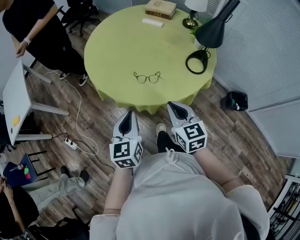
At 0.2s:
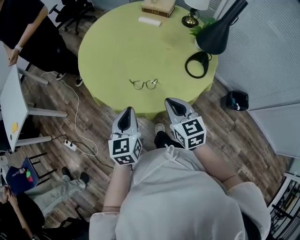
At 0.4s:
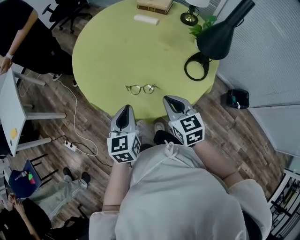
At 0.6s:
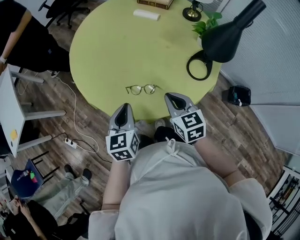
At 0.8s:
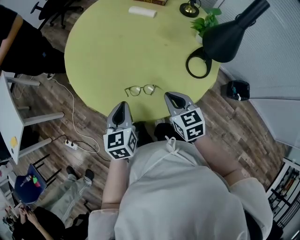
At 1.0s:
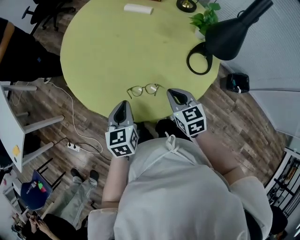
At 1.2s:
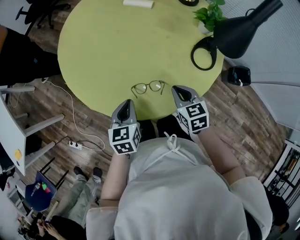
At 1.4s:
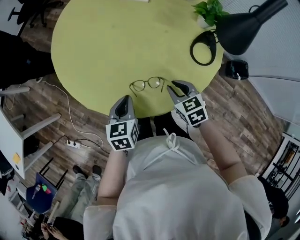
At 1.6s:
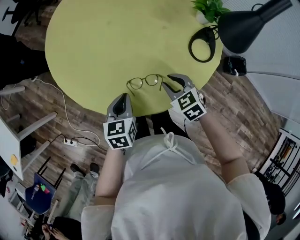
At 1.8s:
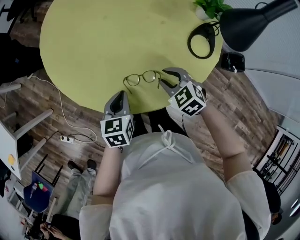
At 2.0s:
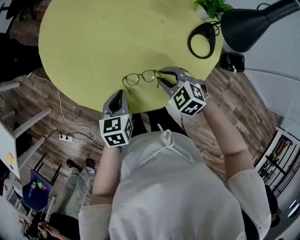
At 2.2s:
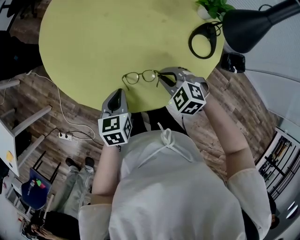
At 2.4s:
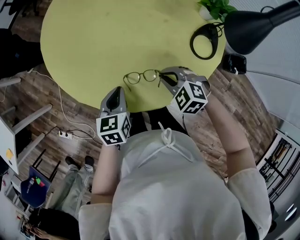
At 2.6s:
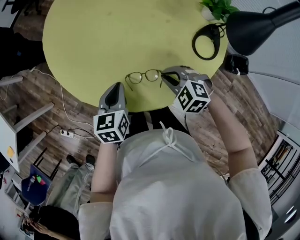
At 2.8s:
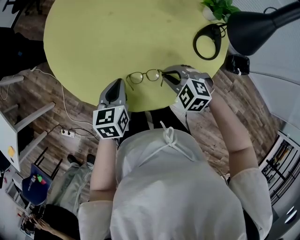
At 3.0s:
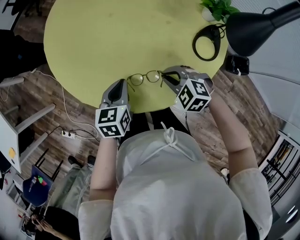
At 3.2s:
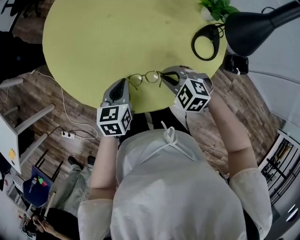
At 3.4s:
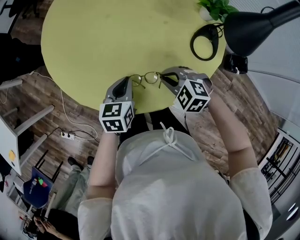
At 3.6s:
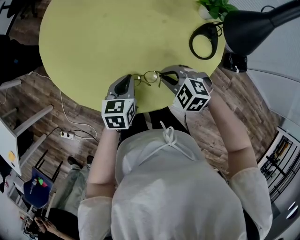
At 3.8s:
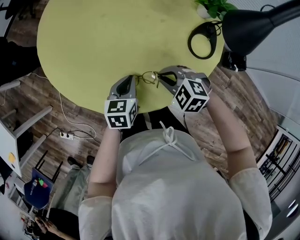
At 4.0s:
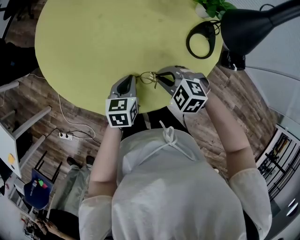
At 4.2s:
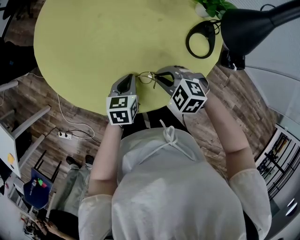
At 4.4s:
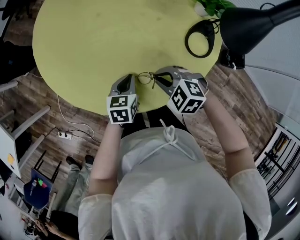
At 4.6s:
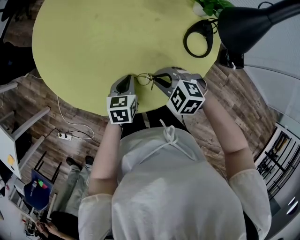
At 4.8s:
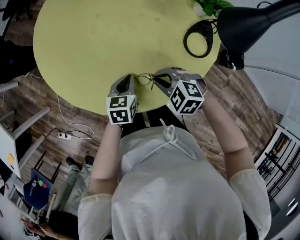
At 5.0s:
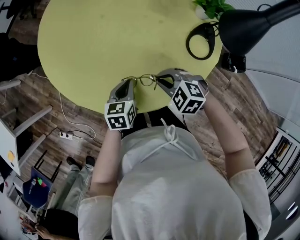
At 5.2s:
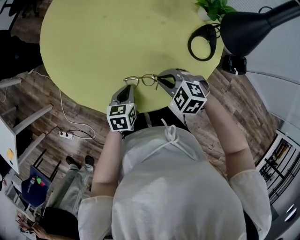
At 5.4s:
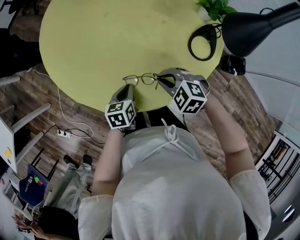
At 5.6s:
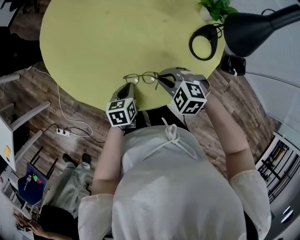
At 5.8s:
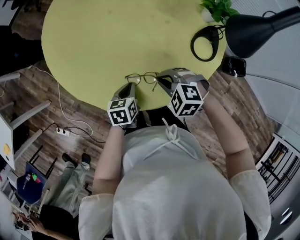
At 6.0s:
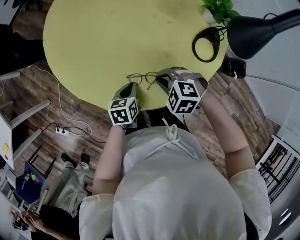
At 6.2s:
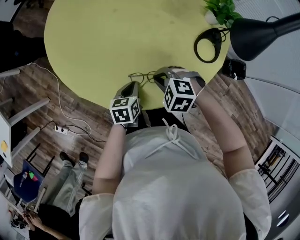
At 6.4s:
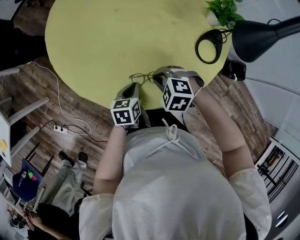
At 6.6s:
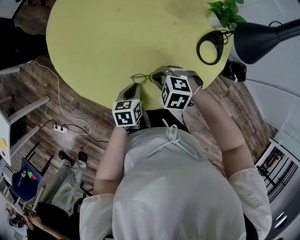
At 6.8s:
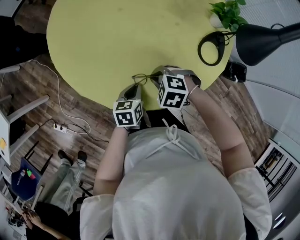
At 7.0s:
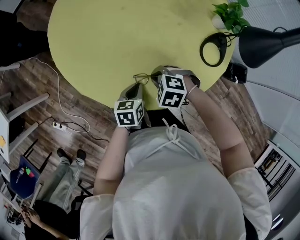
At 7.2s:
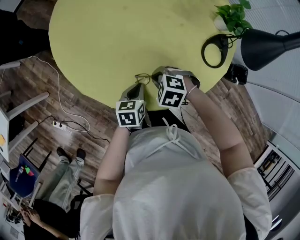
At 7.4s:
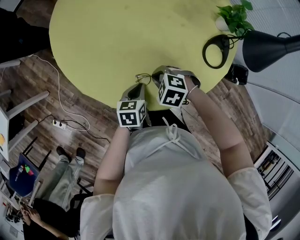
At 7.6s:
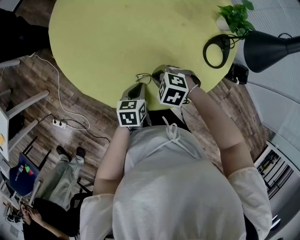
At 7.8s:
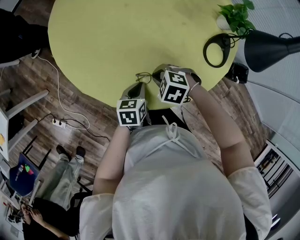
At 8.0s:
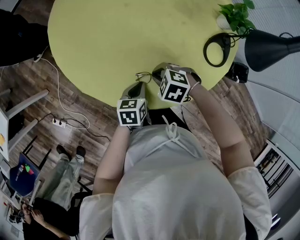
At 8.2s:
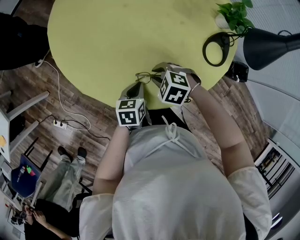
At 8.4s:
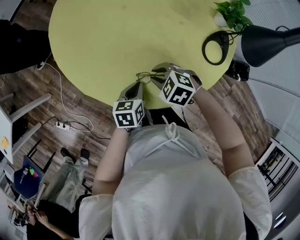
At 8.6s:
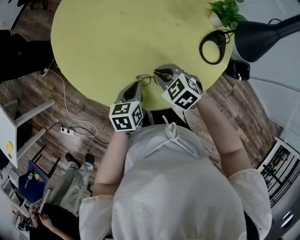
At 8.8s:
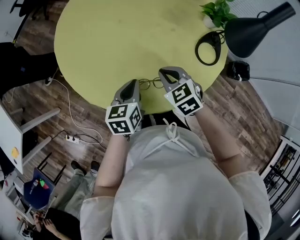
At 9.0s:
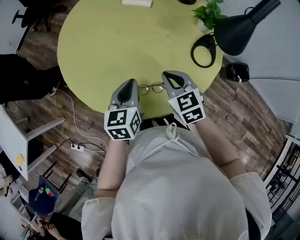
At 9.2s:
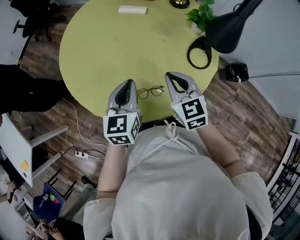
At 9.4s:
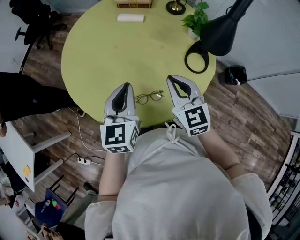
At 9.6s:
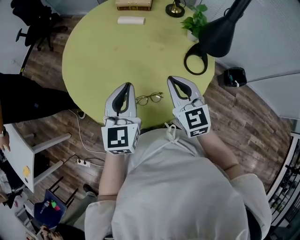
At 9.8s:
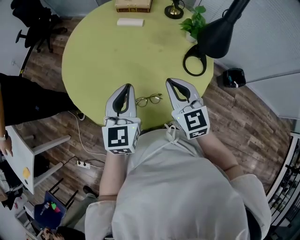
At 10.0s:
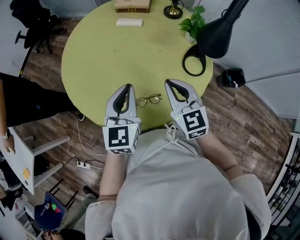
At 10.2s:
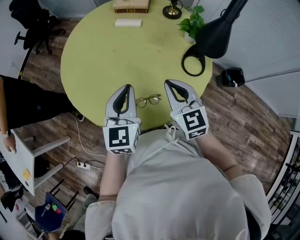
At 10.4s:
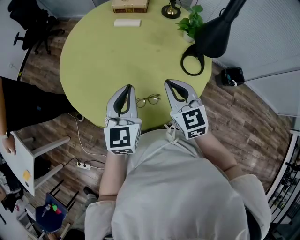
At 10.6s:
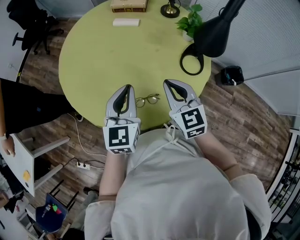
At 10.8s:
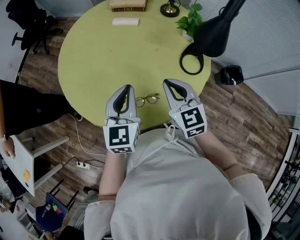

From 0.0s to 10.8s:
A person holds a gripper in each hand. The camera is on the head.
From 0.0s to 1.6s: The grippers both shift forward and downward by some 30 cm. The left gripper swivels some 30 degrees. The right gripper swivels some 30 degrees, and opens.
From 1.6s to 3.0s: The right gripper turns by approximately 30 degrees, and closes its fingers.
From 3.0s to 4.6s: The left gripper goes some 10 cm downward and to the right.
From 4.6s to 6.2s: The left gripper shifts by approximately 5 cm.
From 6.2s to 7.8s: The right gripper shifts by approximately 5 cm.
From 7.8s to 9.2s: The grippers both shift upward by roughly 20 cm. The left gripper swivels approximately 30 degrees. Meanwhile the right gripper angles its fingers upward, by about 40 degrees.
From 9.2s to 10.8s: The left gripper is displaced upward by roughly 5 cm.

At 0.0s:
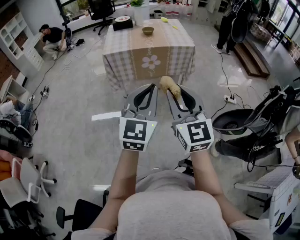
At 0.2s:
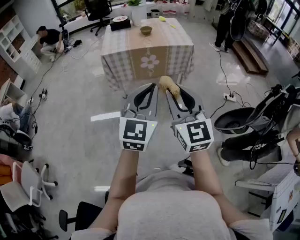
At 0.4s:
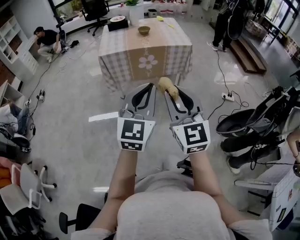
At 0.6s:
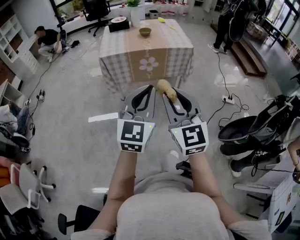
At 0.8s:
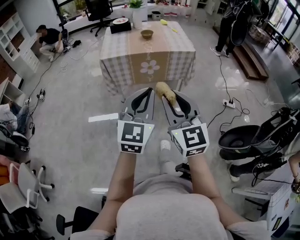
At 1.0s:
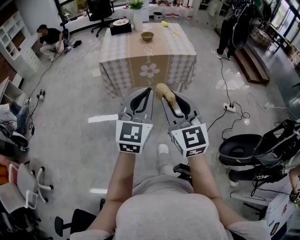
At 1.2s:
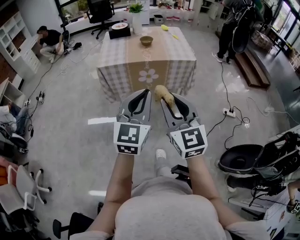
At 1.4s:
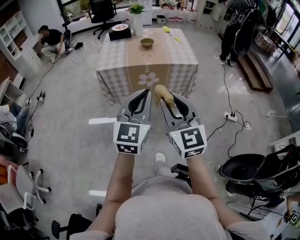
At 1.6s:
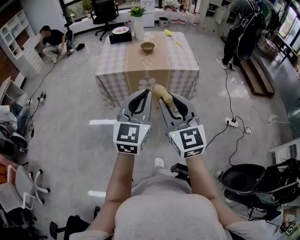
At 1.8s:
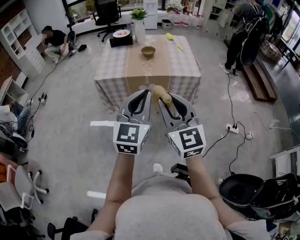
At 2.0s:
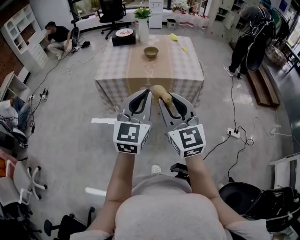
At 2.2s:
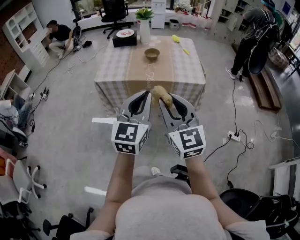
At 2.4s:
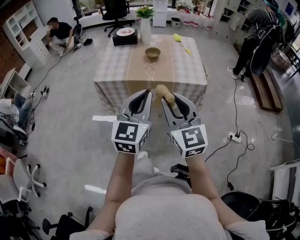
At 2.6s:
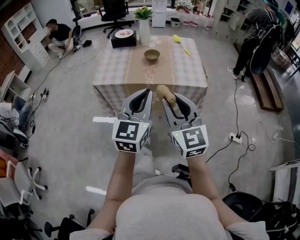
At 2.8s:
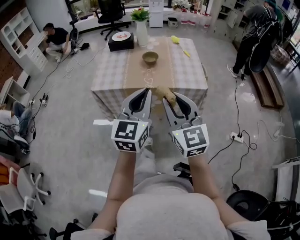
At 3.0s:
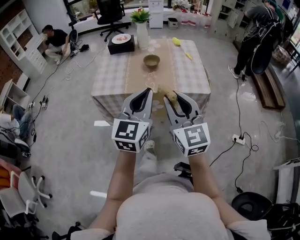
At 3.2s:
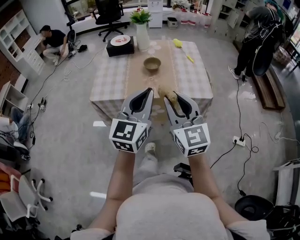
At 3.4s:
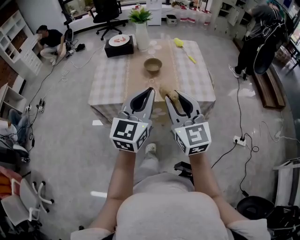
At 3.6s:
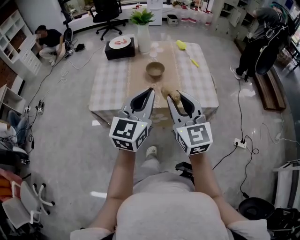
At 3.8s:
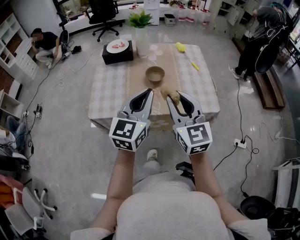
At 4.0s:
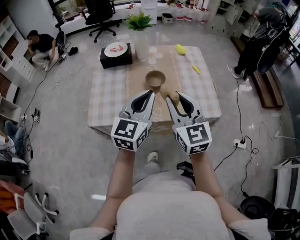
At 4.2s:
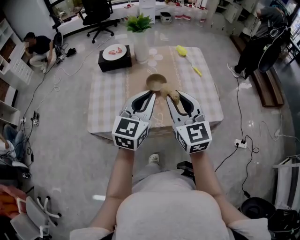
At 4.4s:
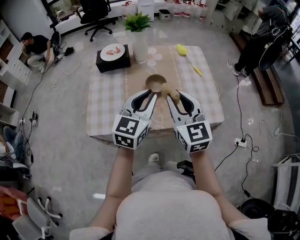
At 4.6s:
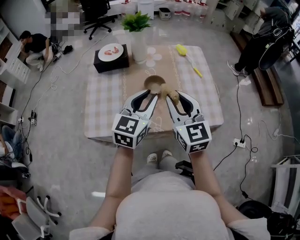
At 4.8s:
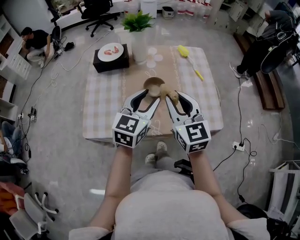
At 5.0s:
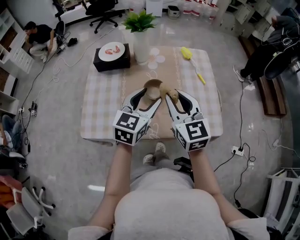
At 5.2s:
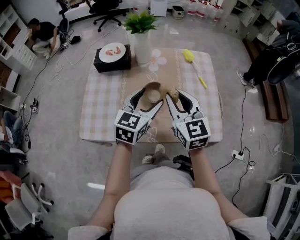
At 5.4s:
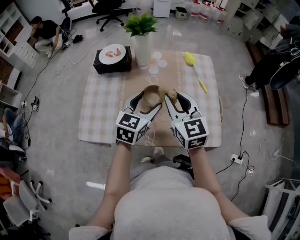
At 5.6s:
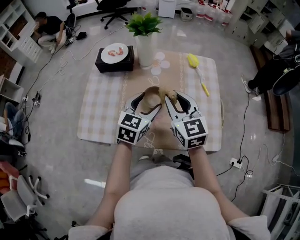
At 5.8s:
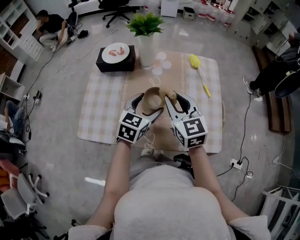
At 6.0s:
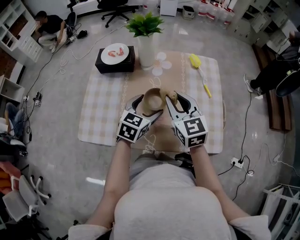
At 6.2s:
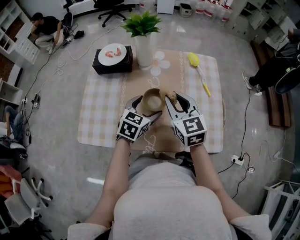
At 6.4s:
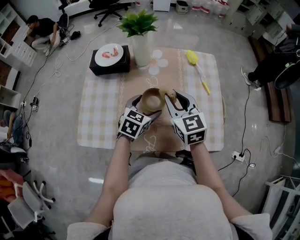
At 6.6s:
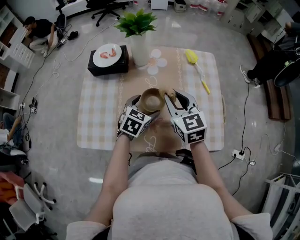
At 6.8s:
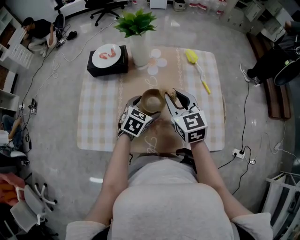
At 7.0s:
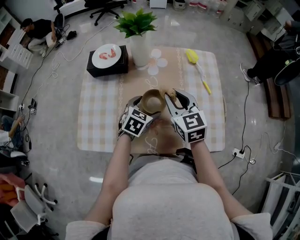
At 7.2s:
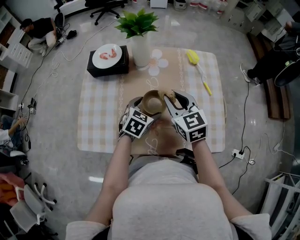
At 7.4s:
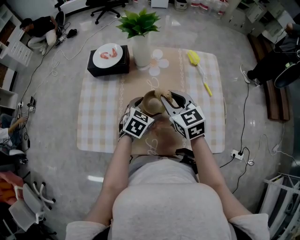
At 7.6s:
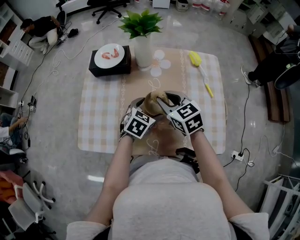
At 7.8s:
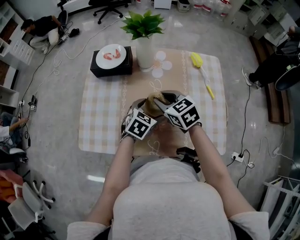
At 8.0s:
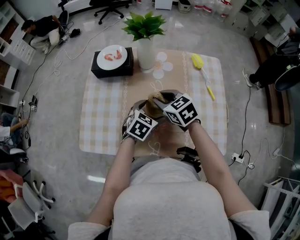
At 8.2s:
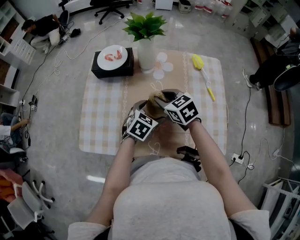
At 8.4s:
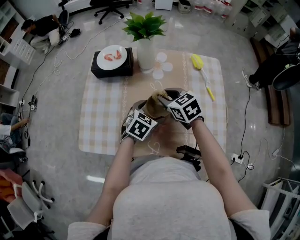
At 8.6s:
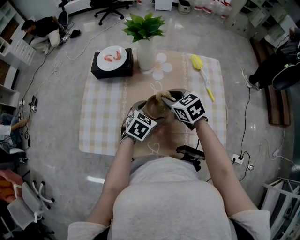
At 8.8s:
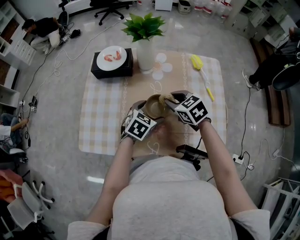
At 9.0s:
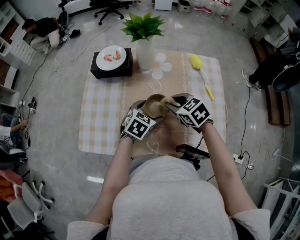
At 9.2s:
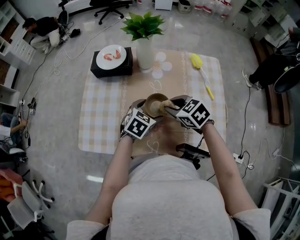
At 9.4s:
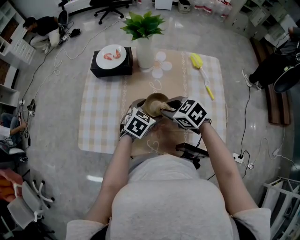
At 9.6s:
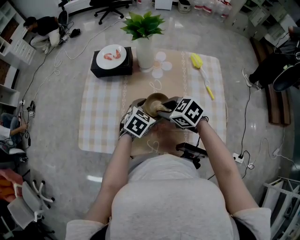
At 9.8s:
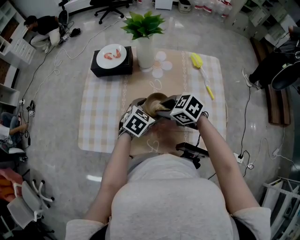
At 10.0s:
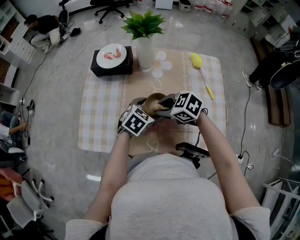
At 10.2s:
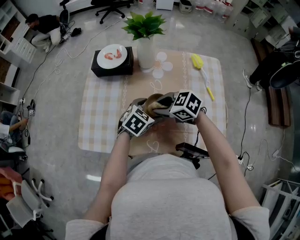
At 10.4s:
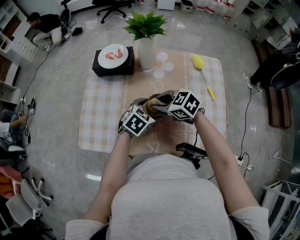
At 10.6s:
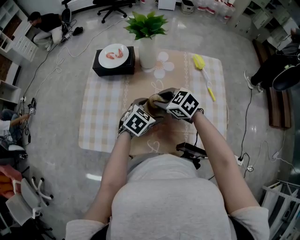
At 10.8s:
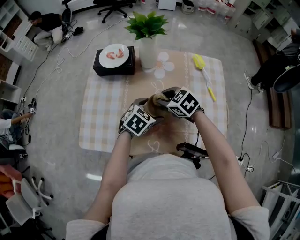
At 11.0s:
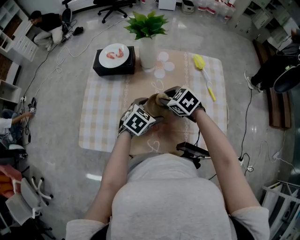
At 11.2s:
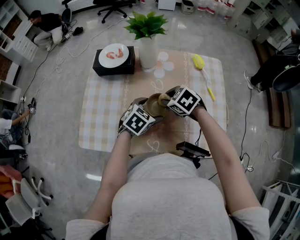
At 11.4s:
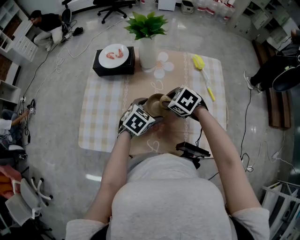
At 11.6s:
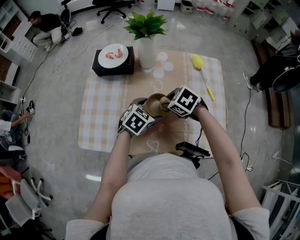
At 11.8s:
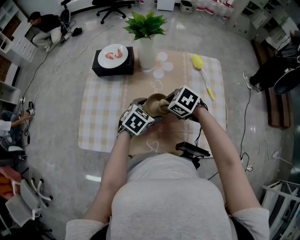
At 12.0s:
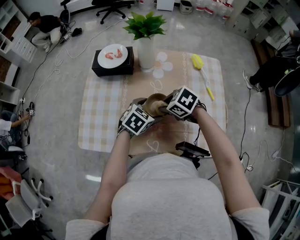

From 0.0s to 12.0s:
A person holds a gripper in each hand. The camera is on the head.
From 0.0s to 1.6s: Both grippers move forward, roughly 20 cm.
From 1.6s to 3.0s: Both grippers move forward, roughly 20 cm.
From 3.0s to 4.4s: The two grippers go some 25 cm forward.
From 4.4s to 6.0s: The left gripper travels downward and forward by approximately 20 cm, turns by some 20 degrees, and opens. Meanwhile the right gripper travels forward and downward by approximately 15 cm.
From 6.0s to 7.6s: The two grippers go roughly 10 cm downward. The right gripper swivels some 20 degrees.
From 7.6s to 9.0s: The right gripper shifts by some 5 cm.
From 9.0s to 10.4s: The right gripper shifts by some 5 cm, and changes its angle by approximately 20 degrees.

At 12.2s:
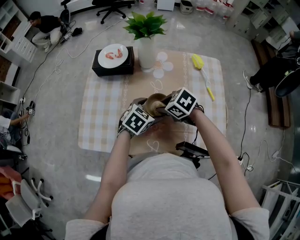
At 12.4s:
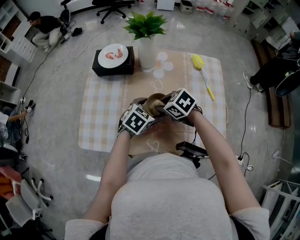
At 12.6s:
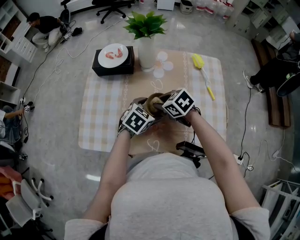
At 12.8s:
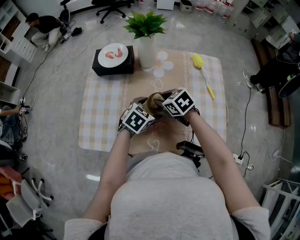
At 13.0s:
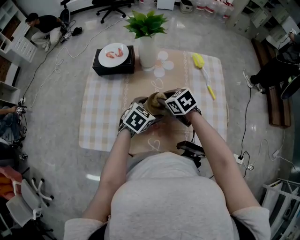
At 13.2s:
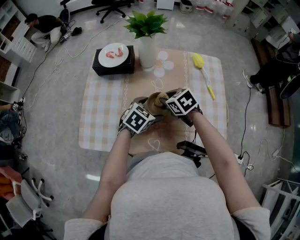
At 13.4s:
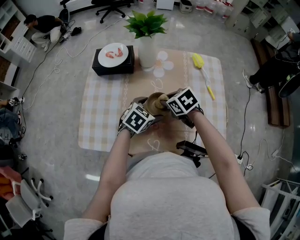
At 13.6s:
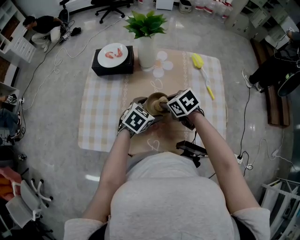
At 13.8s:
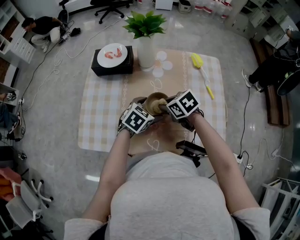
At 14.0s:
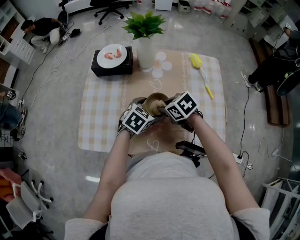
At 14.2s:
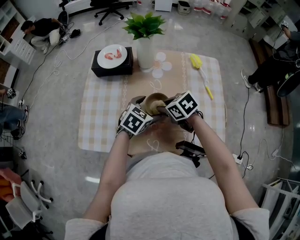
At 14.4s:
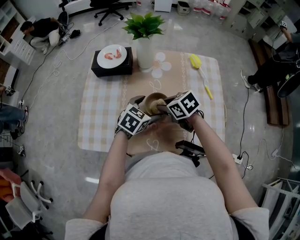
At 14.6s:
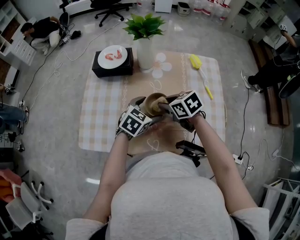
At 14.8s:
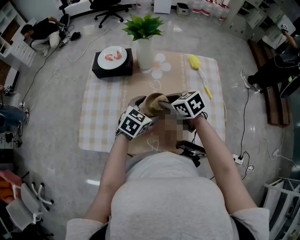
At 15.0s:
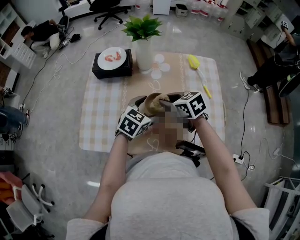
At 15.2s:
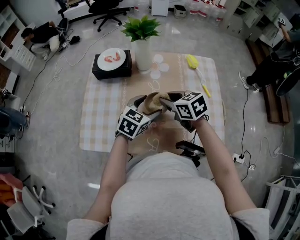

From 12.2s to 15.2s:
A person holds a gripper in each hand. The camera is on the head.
From 13.8s to 15.2s: Both grippers move upward, approximately 5 cm.
